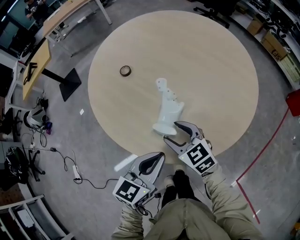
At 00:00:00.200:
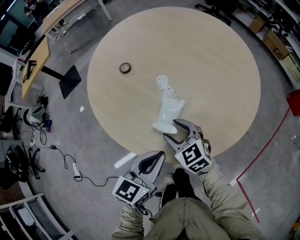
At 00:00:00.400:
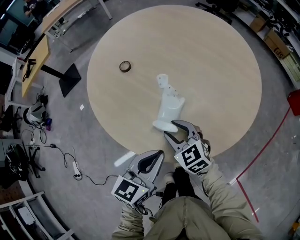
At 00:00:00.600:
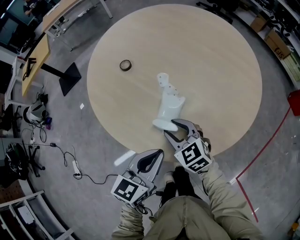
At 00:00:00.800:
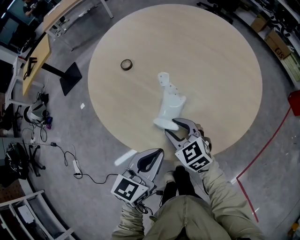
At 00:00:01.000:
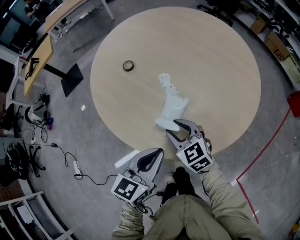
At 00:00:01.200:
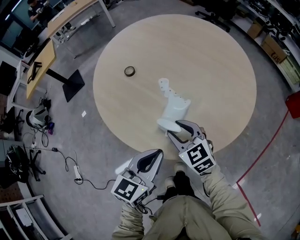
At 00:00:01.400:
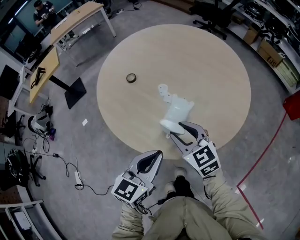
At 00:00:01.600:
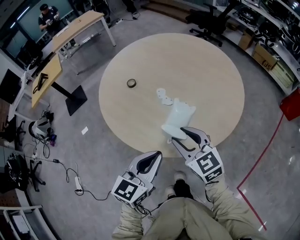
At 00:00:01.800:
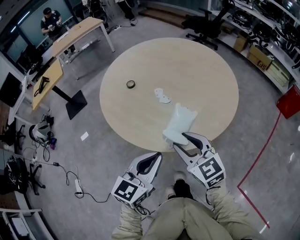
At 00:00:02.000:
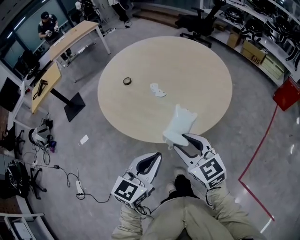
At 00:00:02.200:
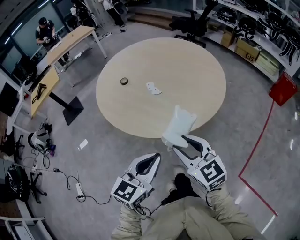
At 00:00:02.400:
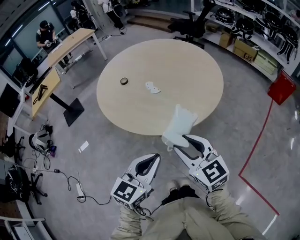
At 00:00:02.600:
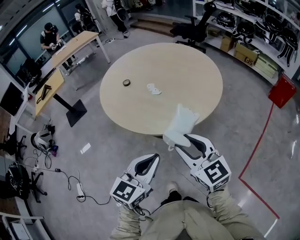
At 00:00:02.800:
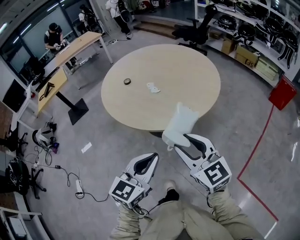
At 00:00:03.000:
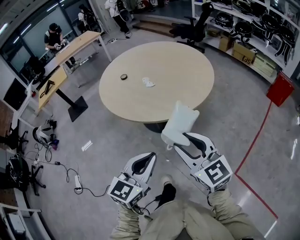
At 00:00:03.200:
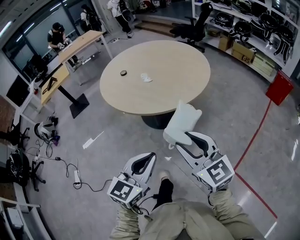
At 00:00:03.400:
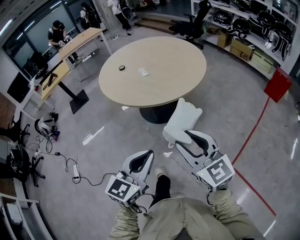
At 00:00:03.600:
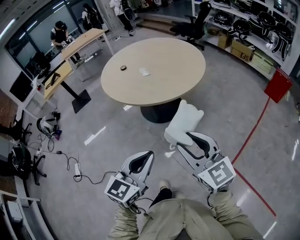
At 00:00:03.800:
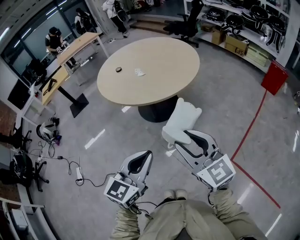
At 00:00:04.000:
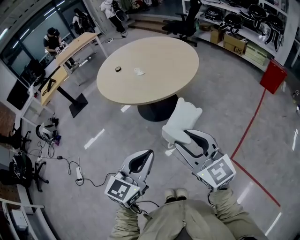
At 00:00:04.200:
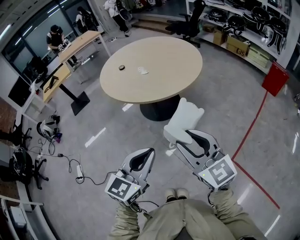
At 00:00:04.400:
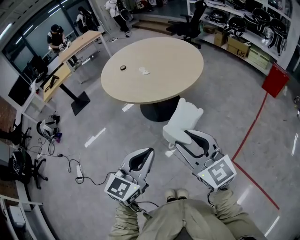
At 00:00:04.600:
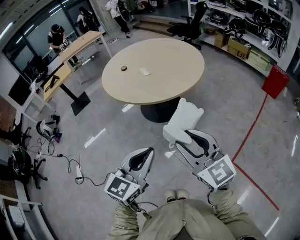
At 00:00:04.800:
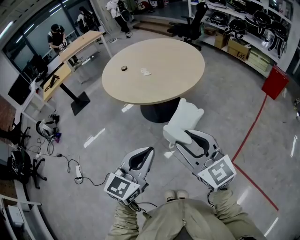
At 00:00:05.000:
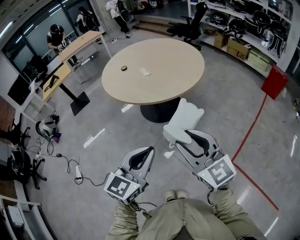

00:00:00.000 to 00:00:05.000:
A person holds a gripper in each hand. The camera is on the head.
00:00:00.000 to 00:00:01.600: The left gripper heads upward, covering some 5 cm. Meanwhile the right gripper travels upward and backward by some 15 cm.
00:00:01.600 to 00:00:03.400: Both grippers travel together backward, about 40 cm.
00:00:03.400 to 00:00:05.000: The left gripper ends up approximately 5 cm from where it was; the right gripper ends up roughly 5 cm from where it was.

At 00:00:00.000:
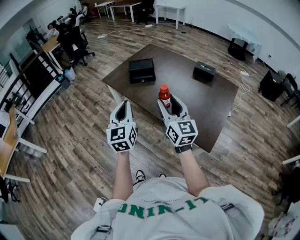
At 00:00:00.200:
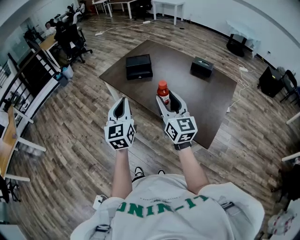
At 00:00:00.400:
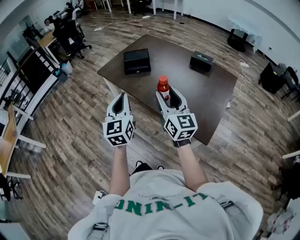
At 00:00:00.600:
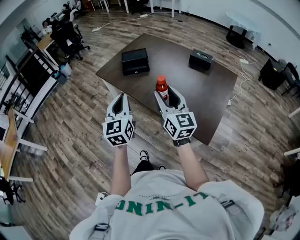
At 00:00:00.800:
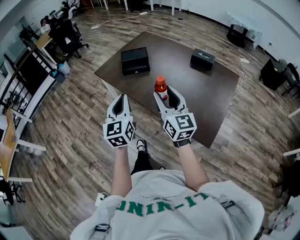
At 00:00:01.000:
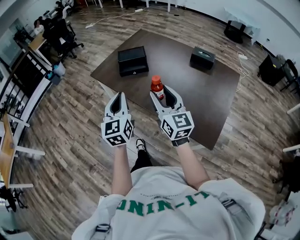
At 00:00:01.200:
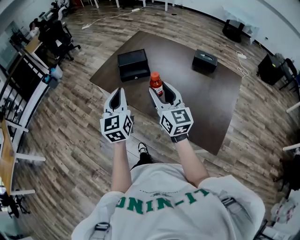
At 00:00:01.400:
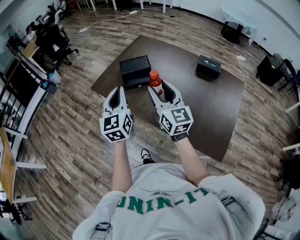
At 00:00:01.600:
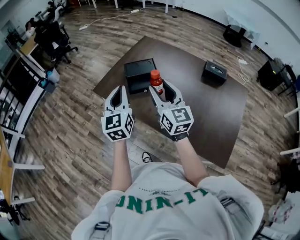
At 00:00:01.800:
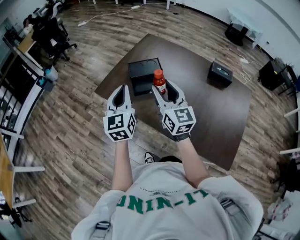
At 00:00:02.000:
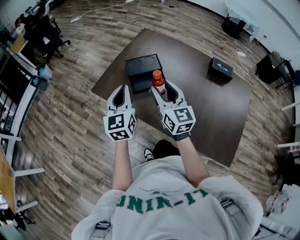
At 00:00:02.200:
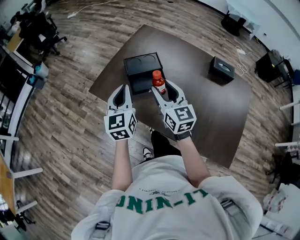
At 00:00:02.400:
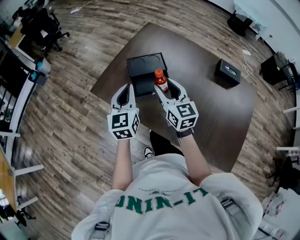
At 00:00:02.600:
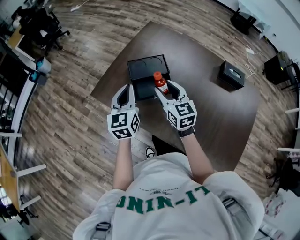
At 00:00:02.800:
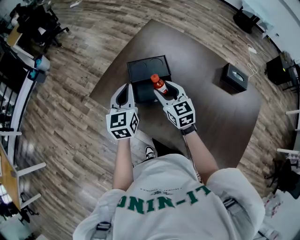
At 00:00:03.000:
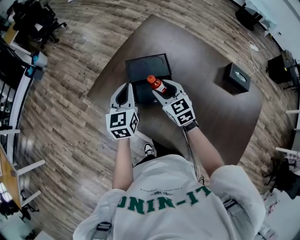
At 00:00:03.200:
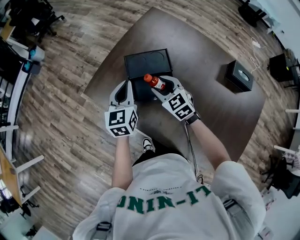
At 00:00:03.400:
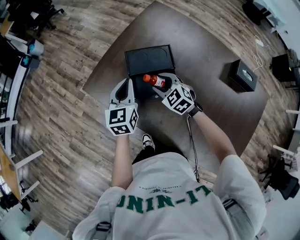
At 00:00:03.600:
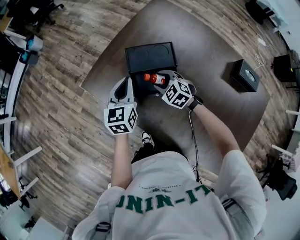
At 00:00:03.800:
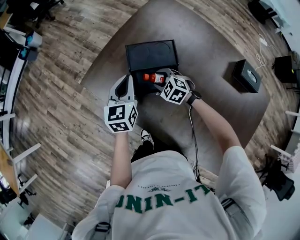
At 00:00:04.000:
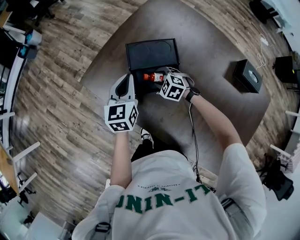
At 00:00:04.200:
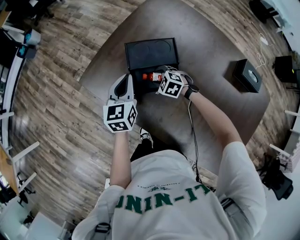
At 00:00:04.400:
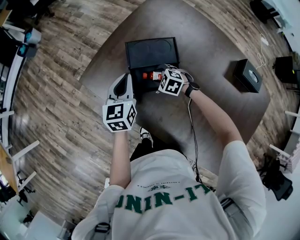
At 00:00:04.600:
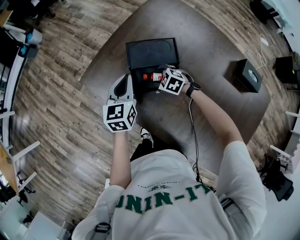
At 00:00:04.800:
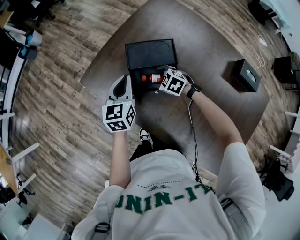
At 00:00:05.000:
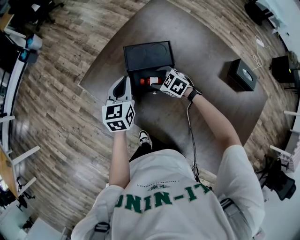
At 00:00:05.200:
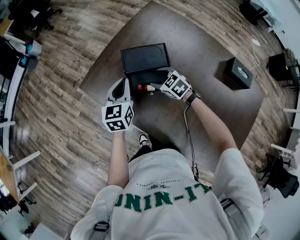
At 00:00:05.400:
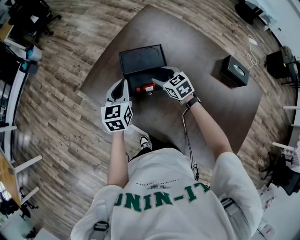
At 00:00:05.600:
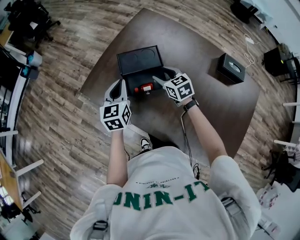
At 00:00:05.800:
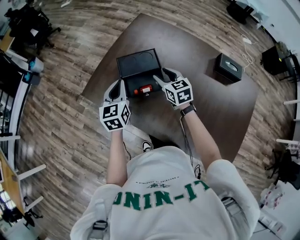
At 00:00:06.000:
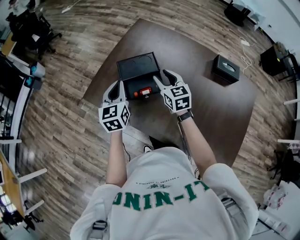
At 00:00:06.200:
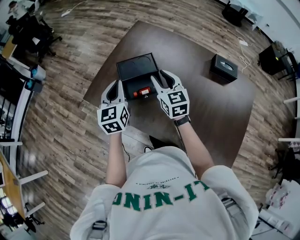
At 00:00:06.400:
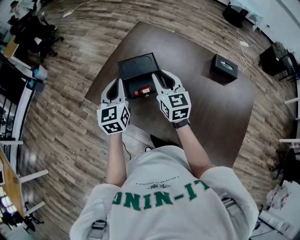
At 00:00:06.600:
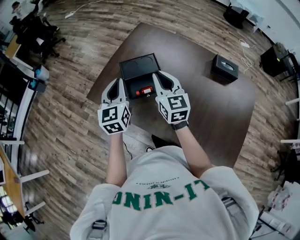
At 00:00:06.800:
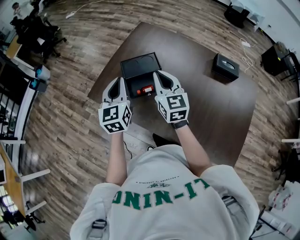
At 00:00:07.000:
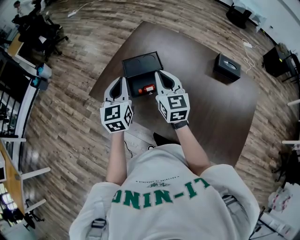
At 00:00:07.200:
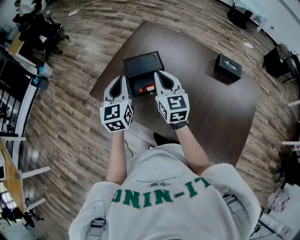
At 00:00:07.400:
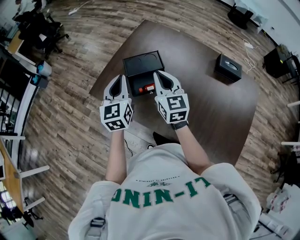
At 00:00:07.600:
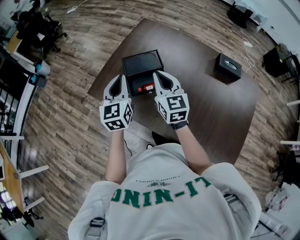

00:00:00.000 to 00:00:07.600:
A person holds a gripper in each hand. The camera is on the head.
00:00:00.000 to 00:00:01.600: The grippers both shift forward by roughly 35 cm.
00:00:01.600 to 00:00:03.000: Both grippers move forward and downward, roughly 35 cm. The right gripper angles its fingers downward, by some 30 degrees.
00:00:03.000 to 00:00:04.600: The left gripper is displaced downward by approximately 10 cm; the right gripper travels downward by about 20 cm, and tilts its fingers some 30 degrees downward.
00:00:04.600 to 00:00:06.000: The right gripper shifts approximately 25 cm upward, and tilts its fingers some 40 degrees upward, while the left gripper shifts approximately 10 cm upward.
00:00:06.000 to 00:00:07.600: The left gripper is displaced upward by roughly 5 cm; the right gripper is displaced upward and backward by some 10 cm, and closes.

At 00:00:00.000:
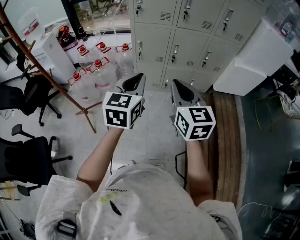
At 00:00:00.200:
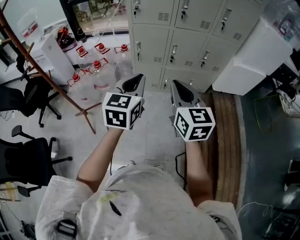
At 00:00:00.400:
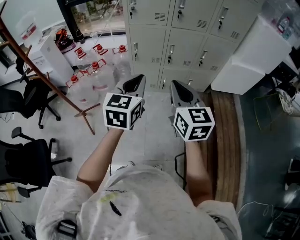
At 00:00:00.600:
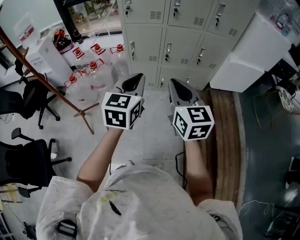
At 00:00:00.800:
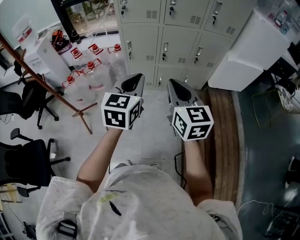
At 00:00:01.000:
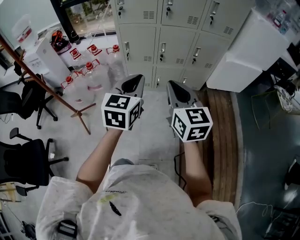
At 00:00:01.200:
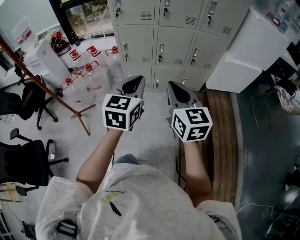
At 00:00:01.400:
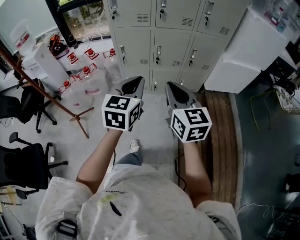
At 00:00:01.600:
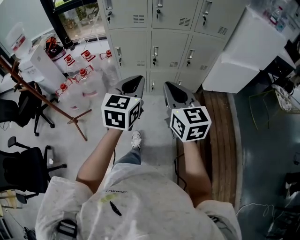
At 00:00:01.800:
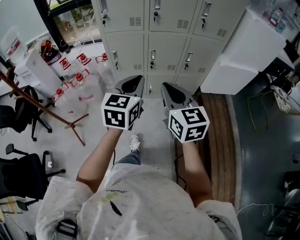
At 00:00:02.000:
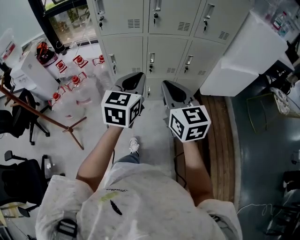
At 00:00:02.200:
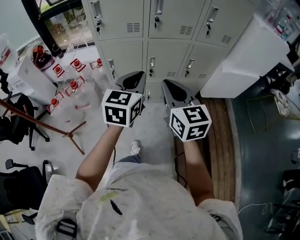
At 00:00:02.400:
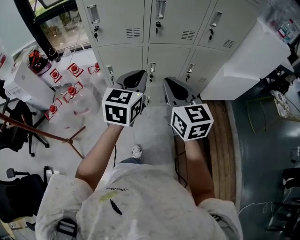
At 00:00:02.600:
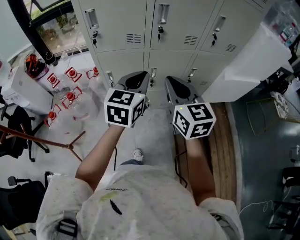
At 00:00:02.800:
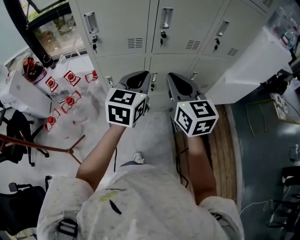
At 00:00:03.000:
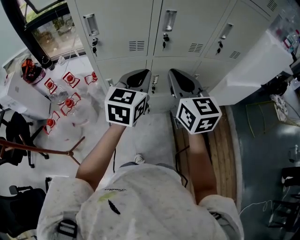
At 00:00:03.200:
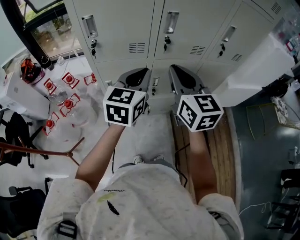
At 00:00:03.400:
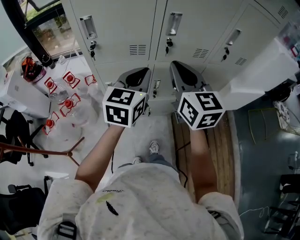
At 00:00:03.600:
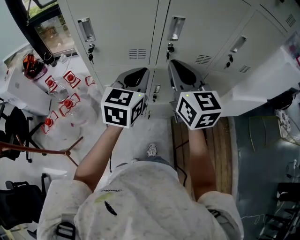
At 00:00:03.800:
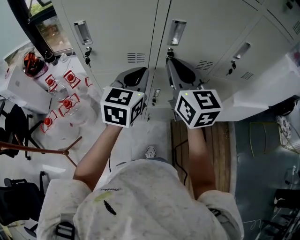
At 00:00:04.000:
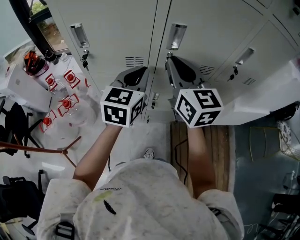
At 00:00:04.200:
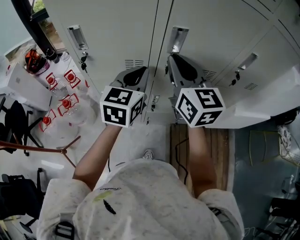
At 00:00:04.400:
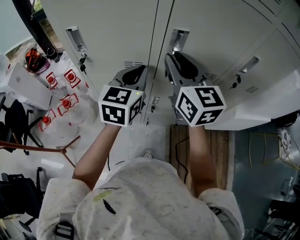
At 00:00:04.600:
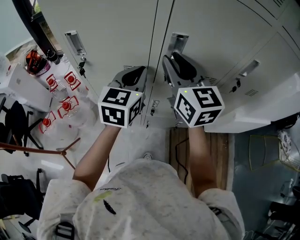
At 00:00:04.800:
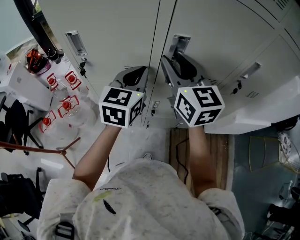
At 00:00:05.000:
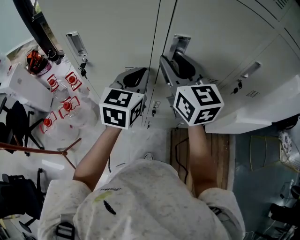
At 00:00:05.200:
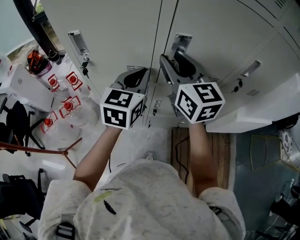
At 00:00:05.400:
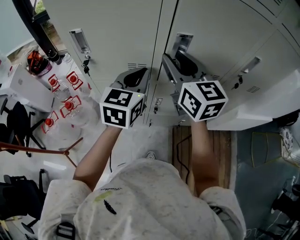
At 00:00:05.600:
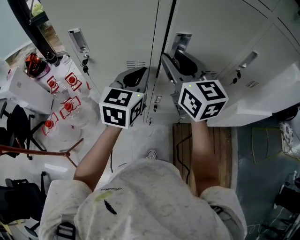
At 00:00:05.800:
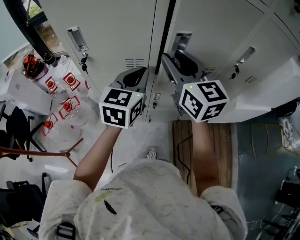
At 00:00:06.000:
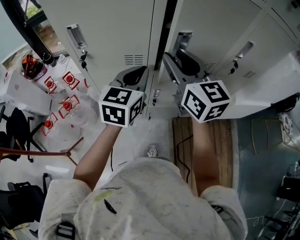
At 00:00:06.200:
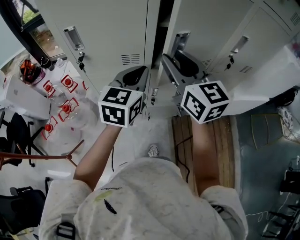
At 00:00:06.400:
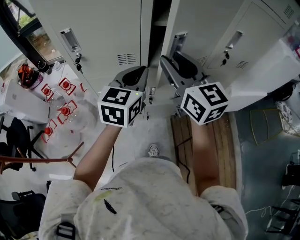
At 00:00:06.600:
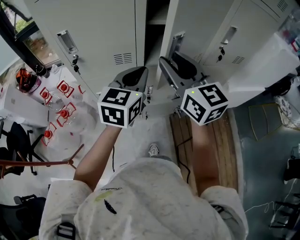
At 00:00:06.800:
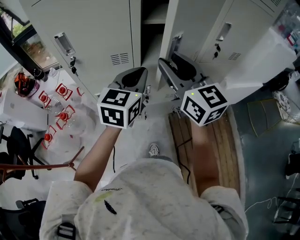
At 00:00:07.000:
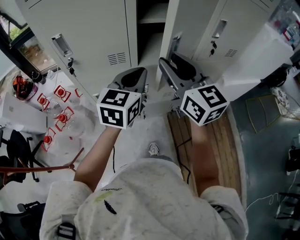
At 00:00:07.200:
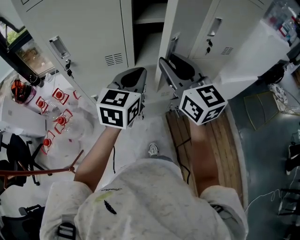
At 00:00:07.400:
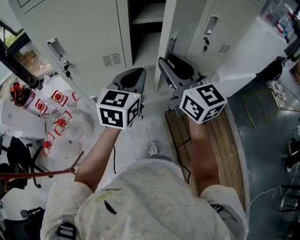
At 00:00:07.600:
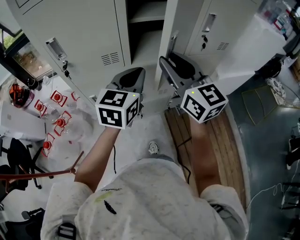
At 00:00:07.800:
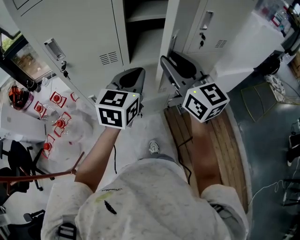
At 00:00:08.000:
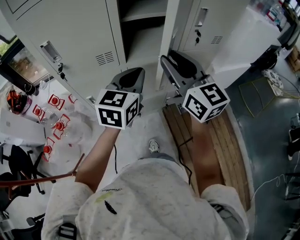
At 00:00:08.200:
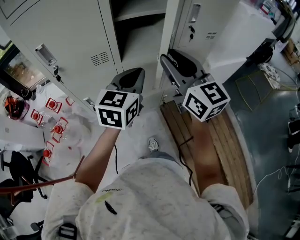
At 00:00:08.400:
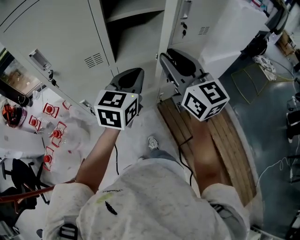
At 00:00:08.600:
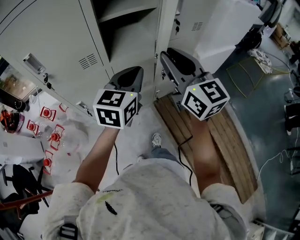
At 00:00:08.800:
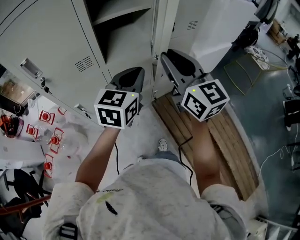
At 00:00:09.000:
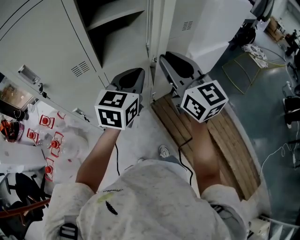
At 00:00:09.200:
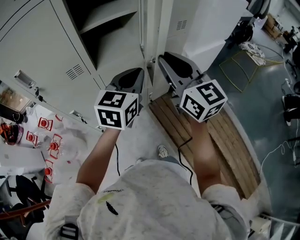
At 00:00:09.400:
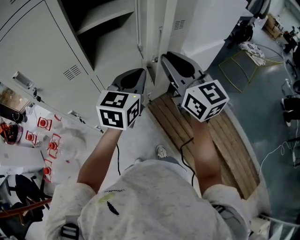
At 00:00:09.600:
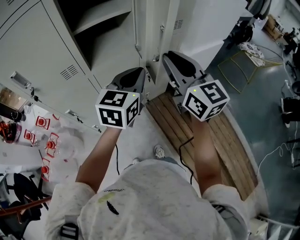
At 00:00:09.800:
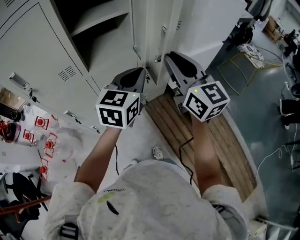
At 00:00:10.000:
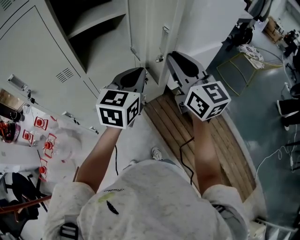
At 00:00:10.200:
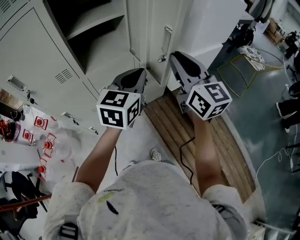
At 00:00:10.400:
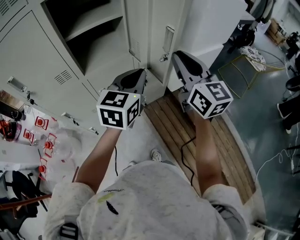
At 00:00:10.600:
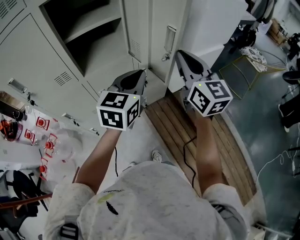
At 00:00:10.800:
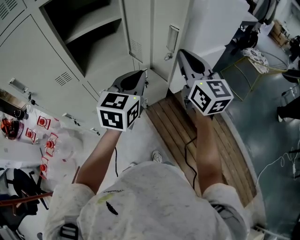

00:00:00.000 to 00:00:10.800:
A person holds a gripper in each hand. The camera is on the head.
00:00:00.000 to 00:00:01.600: The two grippers go roughly 15 cm to the right.
00:00:01.600 to 00:00:03.000: The two grippers go approximately 30 cm forward.
00:00:03.000 to 00:00:04.600: The two grippers go about 20 cm forward. The right gripper opens.
00:00:04.600 to 00:00:06.200: The two grippers go some 5 cm backward.
00:00:06.200 to 00:00:07.800: The right gripper moves backward and to the right, roughly 10 cm, while the left gripper shifts about 10 cm to the right and backward.
00:00:07.800 to 00:00:09.200: The grippers both shift to the right by about 10 cm.
00:00:09.200 to 00:00:10.800: The left gripper is displaced to the right by some 10 cm. Meanwhile the right gripper is displaced to the right and forward by about 15 cm.
